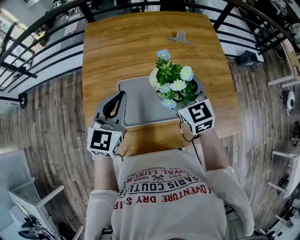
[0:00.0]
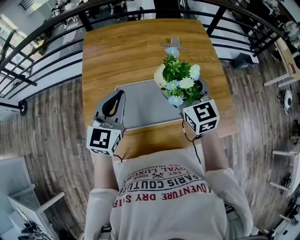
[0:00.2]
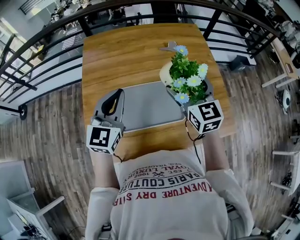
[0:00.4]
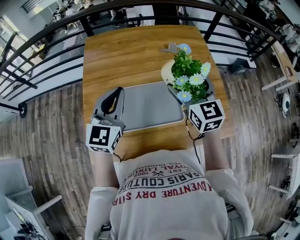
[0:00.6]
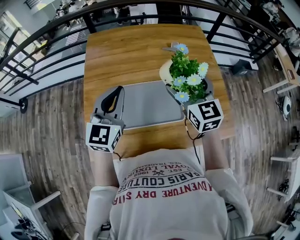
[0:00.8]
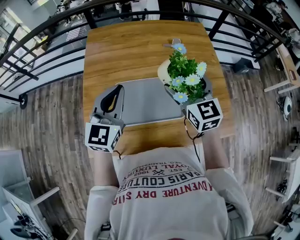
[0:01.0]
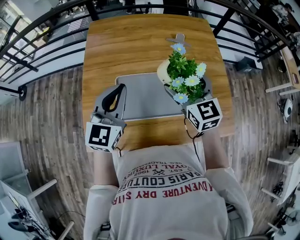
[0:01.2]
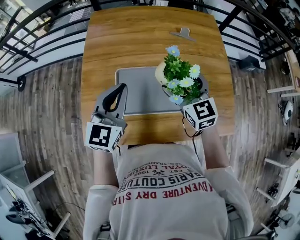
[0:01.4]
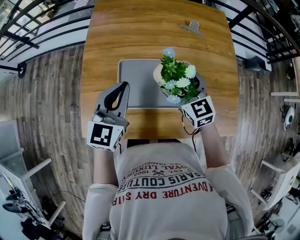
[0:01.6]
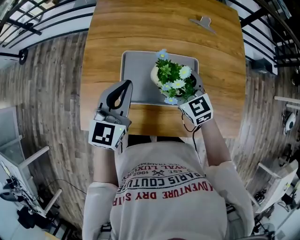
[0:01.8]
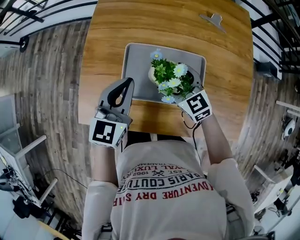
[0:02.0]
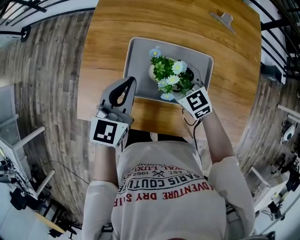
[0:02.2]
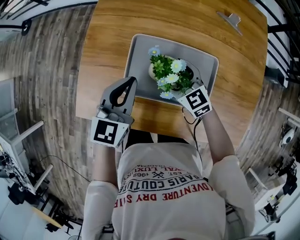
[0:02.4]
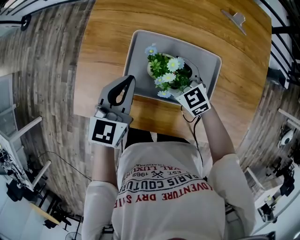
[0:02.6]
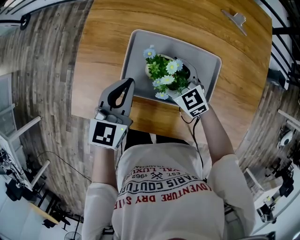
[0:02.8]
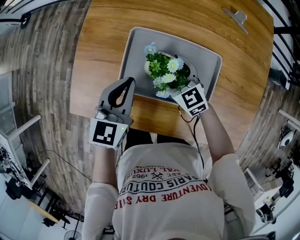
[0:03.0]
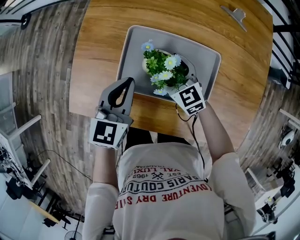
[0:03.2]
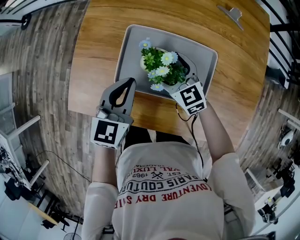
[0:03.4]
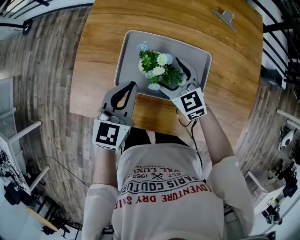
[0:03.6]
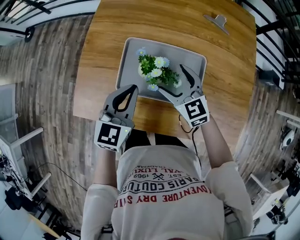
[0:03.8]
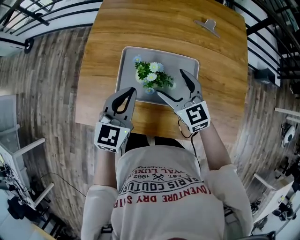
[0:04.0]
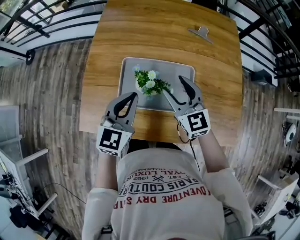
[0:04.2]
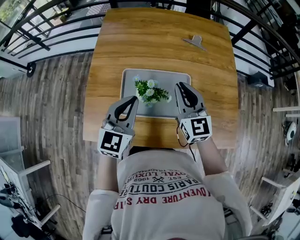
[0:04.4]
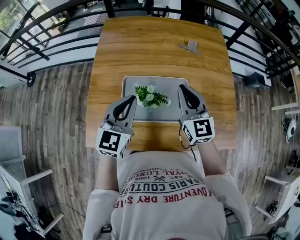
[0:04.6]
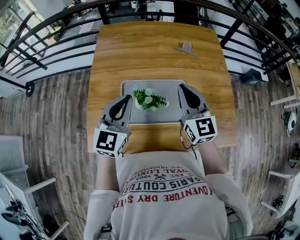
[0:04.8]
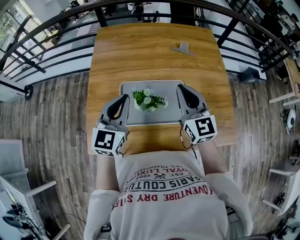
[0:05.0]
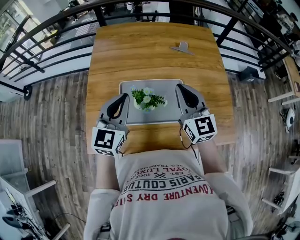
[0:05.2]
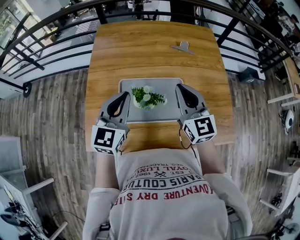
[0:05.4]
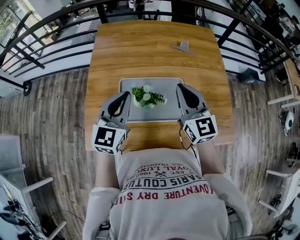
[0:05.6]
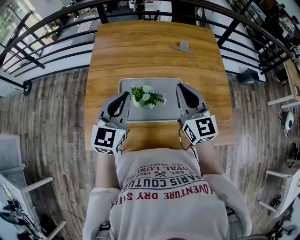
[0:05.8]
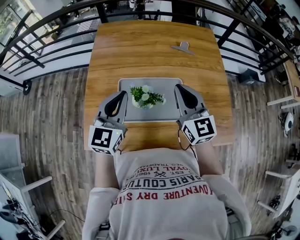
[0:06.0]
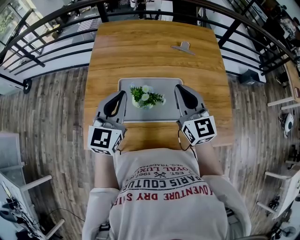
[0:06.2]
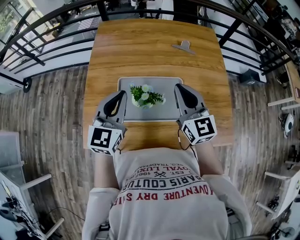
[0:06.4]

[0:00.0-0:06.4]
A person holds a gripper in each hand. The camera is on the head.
0:00.0 to 0:01.6: The right gripper is displaced downward by approximately 5 cm.
0:01.6 to 0:03.2: The right gripper goes about 20 cm downward and to the left, and rotates some 20 degrees. The left gripper is displaced downward by approximately 15 cm, and changes its angle by about 20 degrees.
0:03.2 to 0:04.8: The right gripper moves upward, some 25 cm, swivels about 40 degrees, and closes its fingers; the left gripper travels upward by approximately 15 cm, and rotates some 30 degrees.
0:04.8 to 0:06.4: The grippers move only a little.

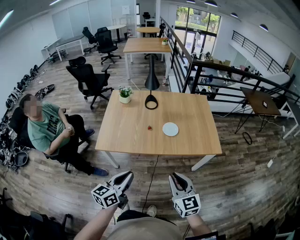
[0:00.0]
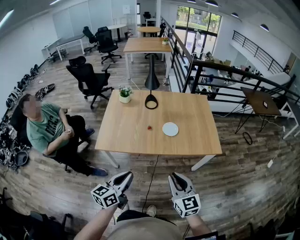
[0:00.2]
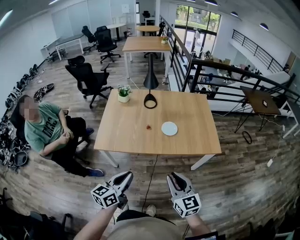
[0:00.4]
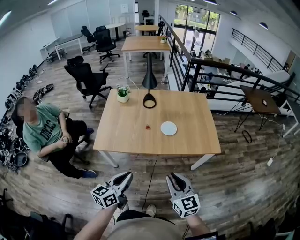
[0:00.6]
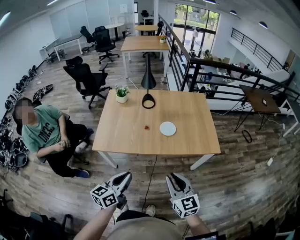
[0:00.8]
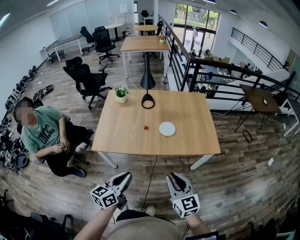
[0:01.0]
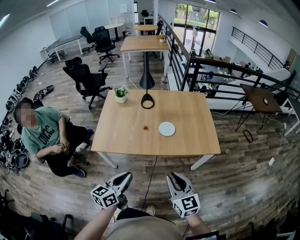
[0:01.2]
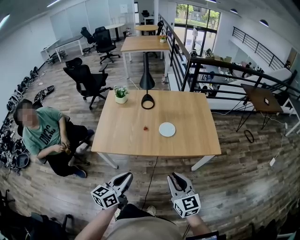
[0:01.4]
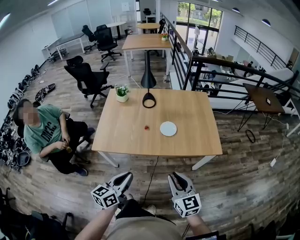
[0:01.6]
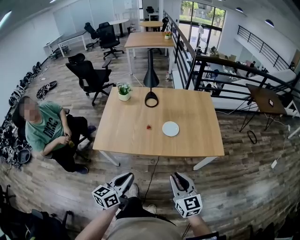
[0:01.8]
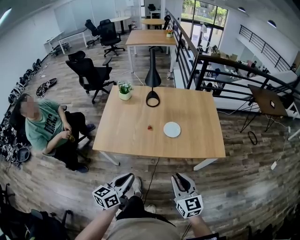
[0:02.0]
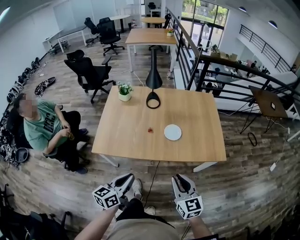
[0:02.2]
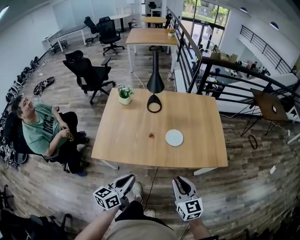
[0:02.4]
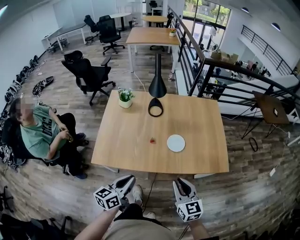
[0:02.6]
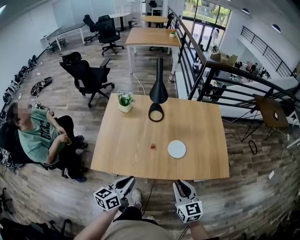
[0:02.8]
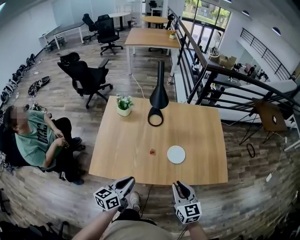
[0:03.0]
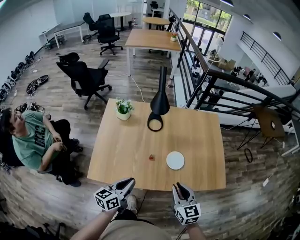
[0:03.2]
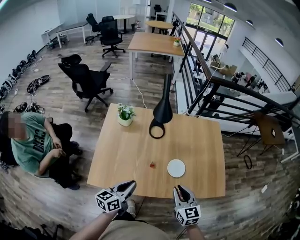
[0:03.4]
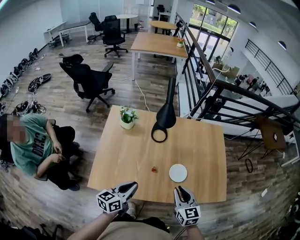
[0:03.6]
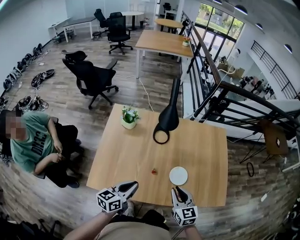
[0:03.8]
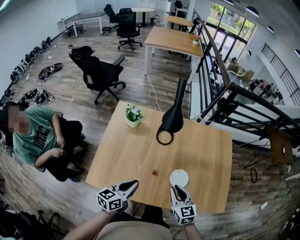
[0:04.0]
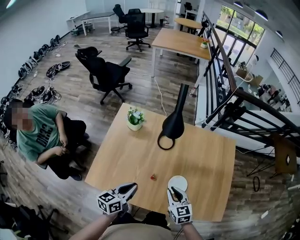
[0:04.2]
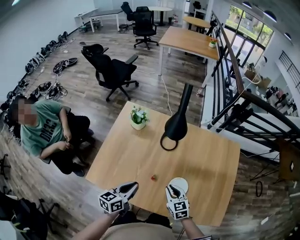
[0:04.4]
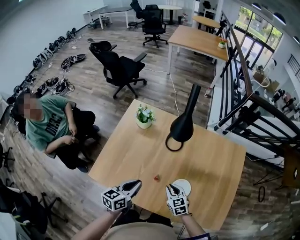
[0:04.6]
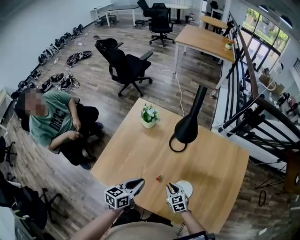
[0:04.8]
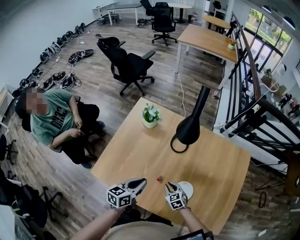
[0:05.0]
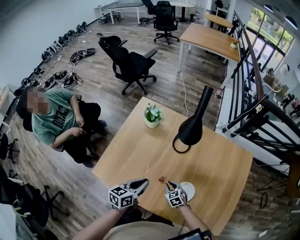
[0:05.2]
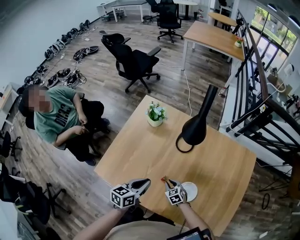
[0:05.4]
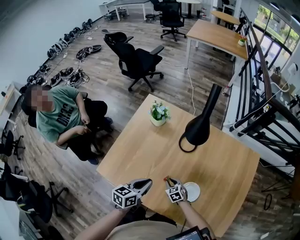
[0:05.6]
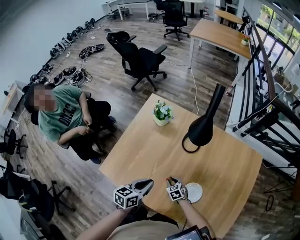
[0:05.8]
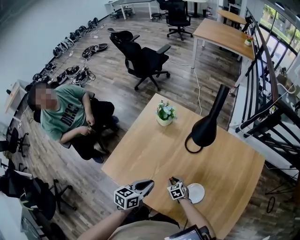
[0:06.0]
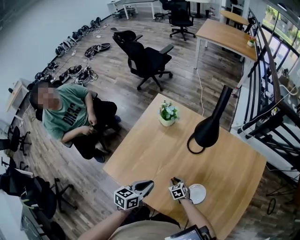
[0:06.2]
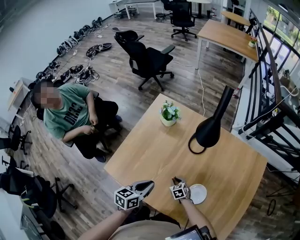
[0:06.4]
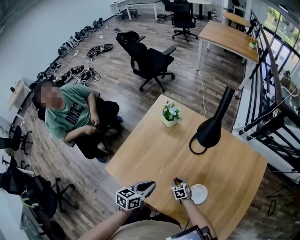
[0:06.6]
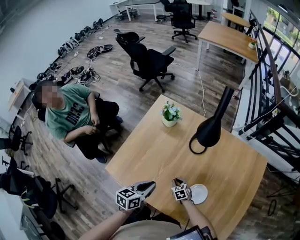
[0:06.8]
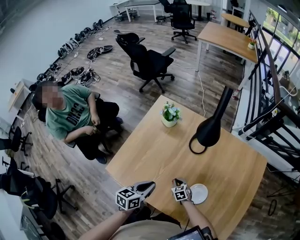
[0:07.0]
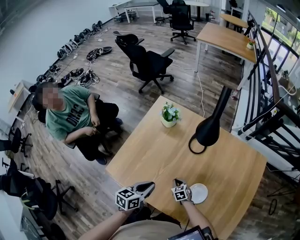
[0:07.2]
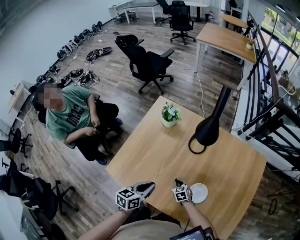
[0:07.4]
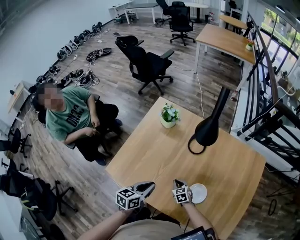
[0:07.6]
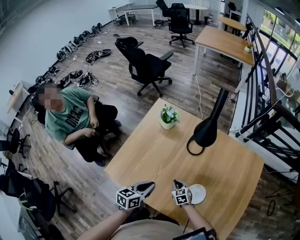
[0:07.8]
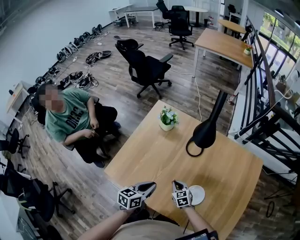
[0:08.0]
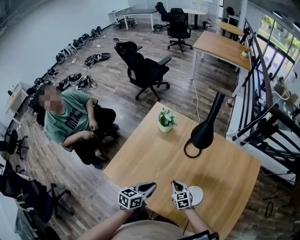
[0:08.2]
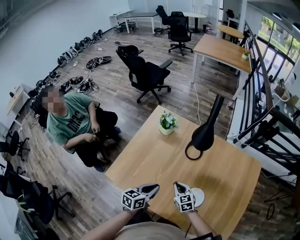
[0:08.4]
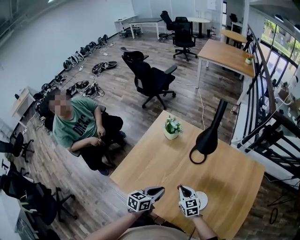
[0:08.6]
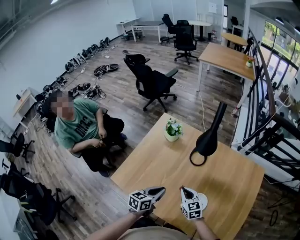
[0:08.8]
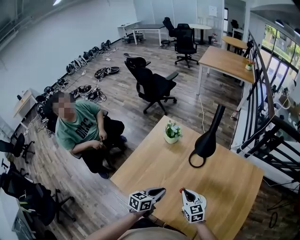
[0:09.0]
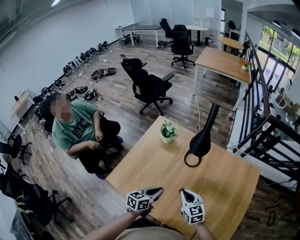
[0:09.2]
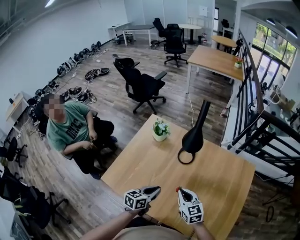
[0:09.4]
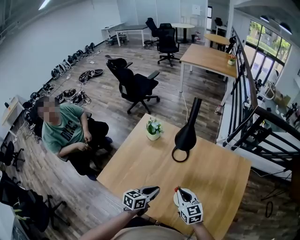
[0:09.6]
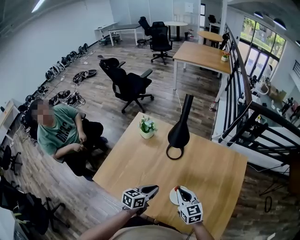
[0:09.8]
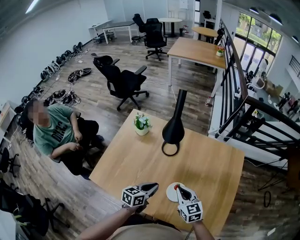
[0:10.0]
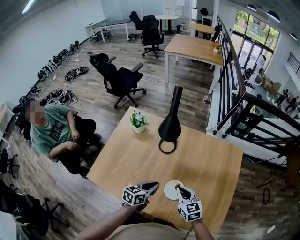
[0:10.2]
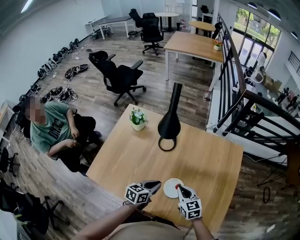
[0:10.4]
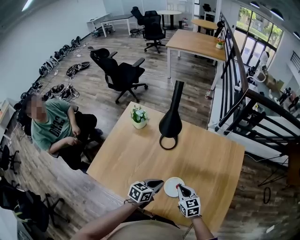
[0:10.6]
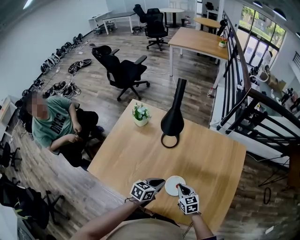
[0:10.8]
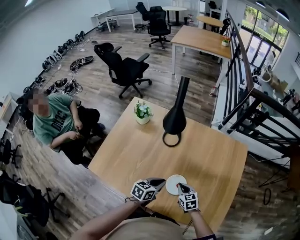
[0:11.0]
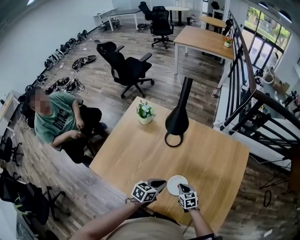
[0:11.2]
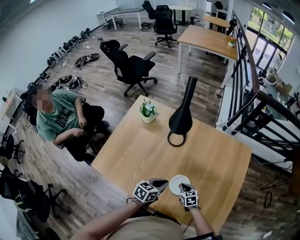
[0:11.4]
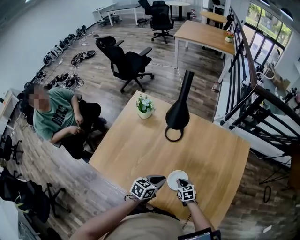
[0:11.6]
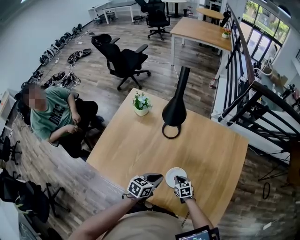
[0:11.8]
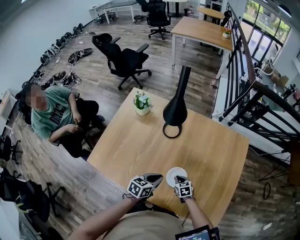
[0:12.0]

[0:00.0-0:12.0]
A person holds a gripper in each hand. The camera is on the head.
0:00.0 to 0:01.6: The left gripper changes place by some 5 cm. Meanwhile the right gripper moves about 5 cm.
0:01.6 to 0:03.0: The left gripper moves forward and to the left, roughly 25 cm. Meanwhile the right gripper heads forward, covering about 20 cm.
0:03.0 to 0:04.4: The left gripper travels forward by some 15 cm; the right gripper heads forward and downward, covering some 25 cm, and rotates some 30 degrees.
0:04.4 to 0:06.0: The right gripper moves downward, about 25 cm, and turns by about 30 degrees; the left gripper goes some 5 cm downward.
0:06.0 to 0:07.6: There are only small adjustments of the grippers.
0:07.6 to 0:09.0: The right gripper moves upward, about 25 cm, and swivels approximately 20 degrees.
0:09.0 to 0:10.4: Both grippers travel together to the right, roughly 15 cm.
0:10.4 to 0:12.0: The right gripper heads downward, covering about 20 cm, and turns by about 20 degrees.

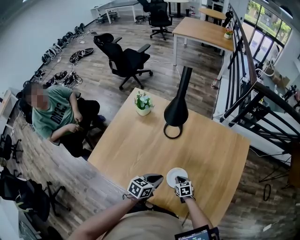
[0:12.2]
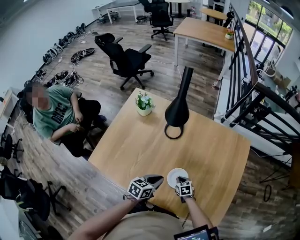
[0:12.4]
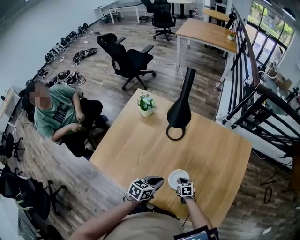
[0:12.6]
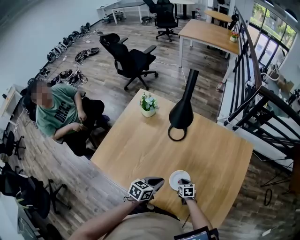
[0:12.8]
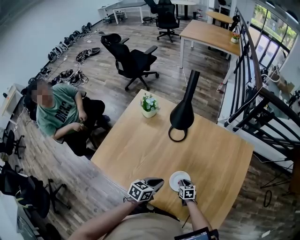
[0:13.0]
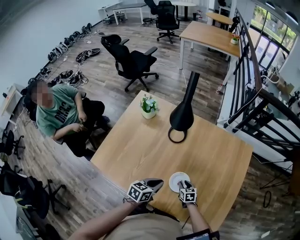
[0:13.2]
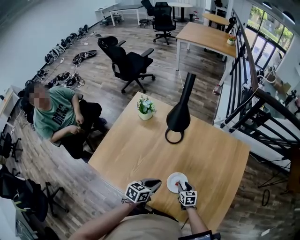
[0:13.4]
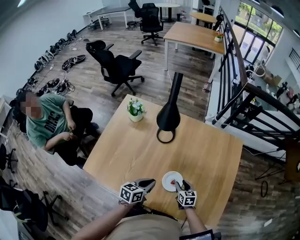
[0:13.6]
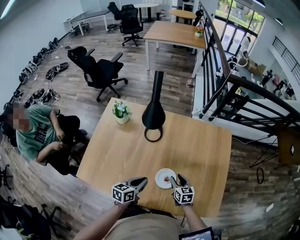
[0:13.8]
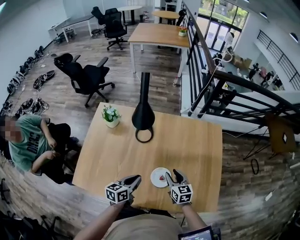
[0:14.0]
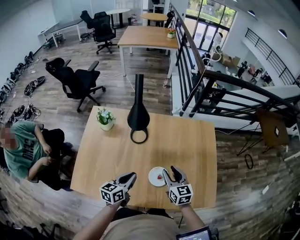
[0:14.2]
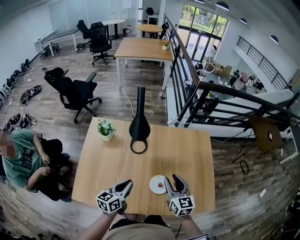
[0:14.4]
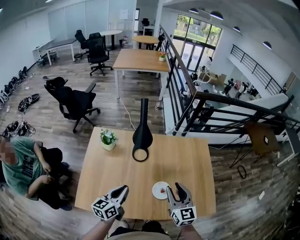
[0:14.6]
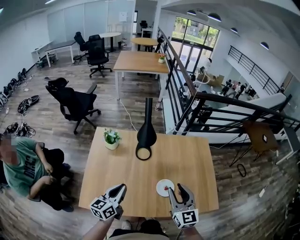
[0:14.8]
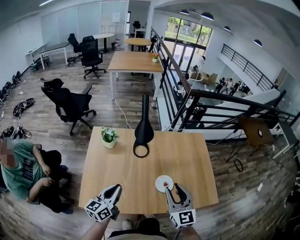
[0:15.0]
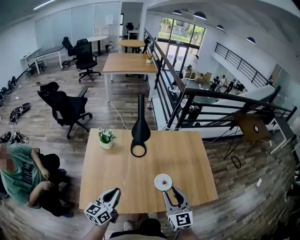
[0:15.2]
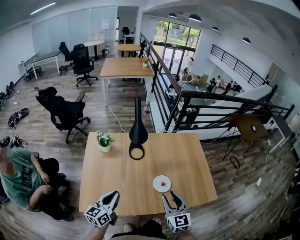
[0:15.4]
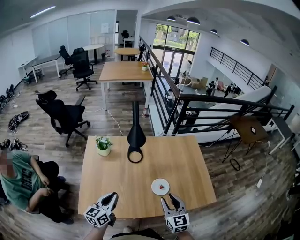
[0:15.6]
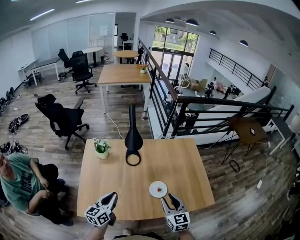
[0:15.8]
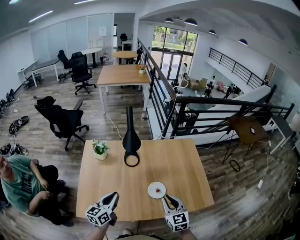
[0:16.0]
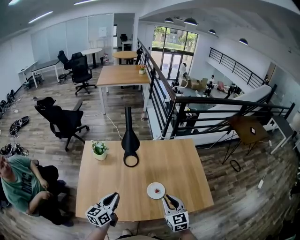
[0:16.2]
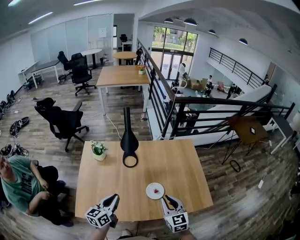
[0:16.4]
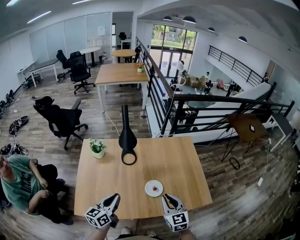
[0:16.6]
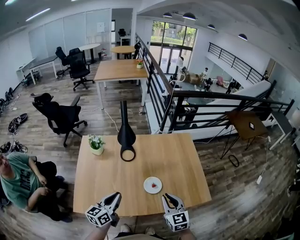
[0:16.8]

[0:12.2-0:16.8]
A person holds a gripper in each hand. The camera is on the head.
0:12.2 to 0:13.8: The right gripper goes approximately 10 cm upward, turns by about 30 degrees, and opens its fingers.
0:13.8 to 0:15.2: The right gripper moves upward and backward, roughly 35 cm, and rotates approximately 40 degrees; the left gripper goes about 25 cm to the left, upward and backward, and rotates about 30 degrees.
0:15.2 to 0:16.8: The two grippers go approximately 10 cm to the right. The right gripper closes up.
